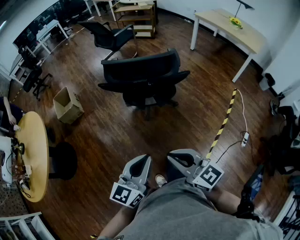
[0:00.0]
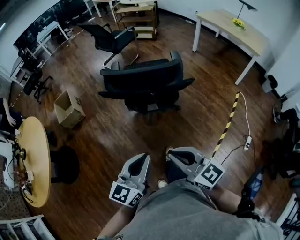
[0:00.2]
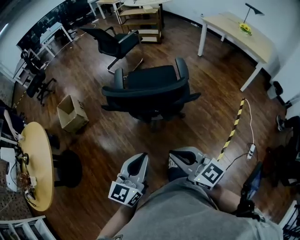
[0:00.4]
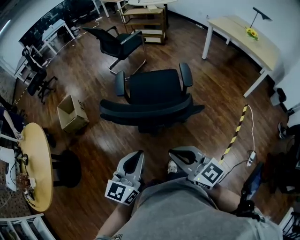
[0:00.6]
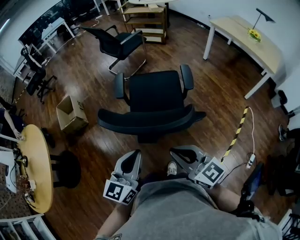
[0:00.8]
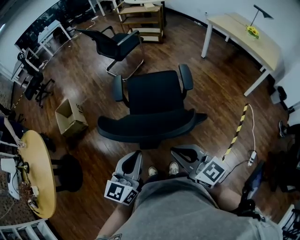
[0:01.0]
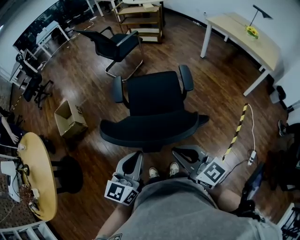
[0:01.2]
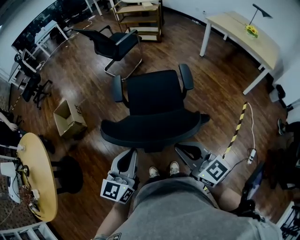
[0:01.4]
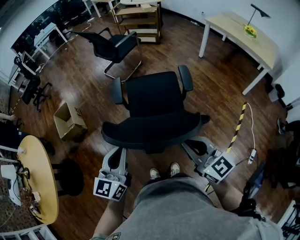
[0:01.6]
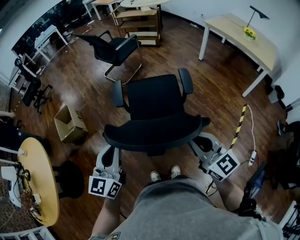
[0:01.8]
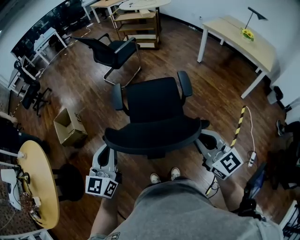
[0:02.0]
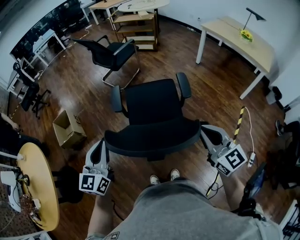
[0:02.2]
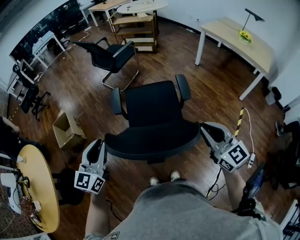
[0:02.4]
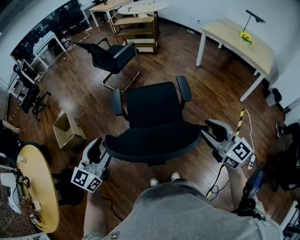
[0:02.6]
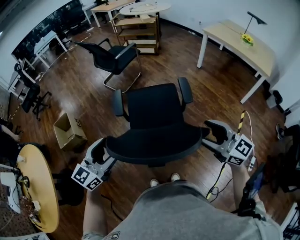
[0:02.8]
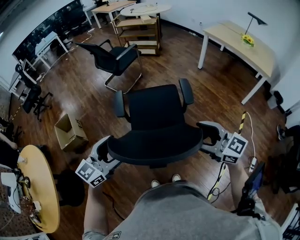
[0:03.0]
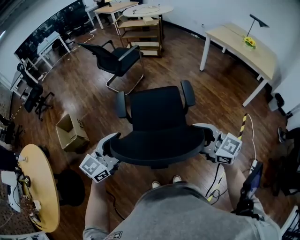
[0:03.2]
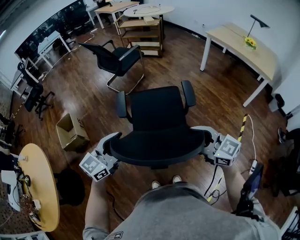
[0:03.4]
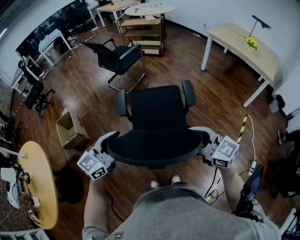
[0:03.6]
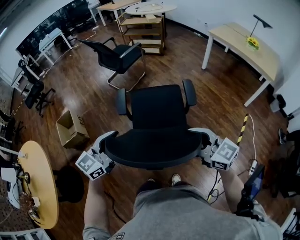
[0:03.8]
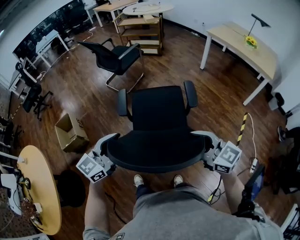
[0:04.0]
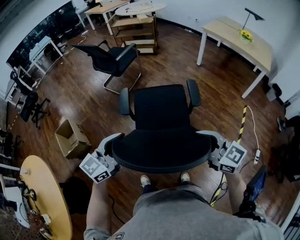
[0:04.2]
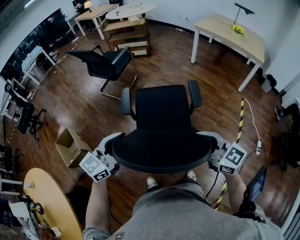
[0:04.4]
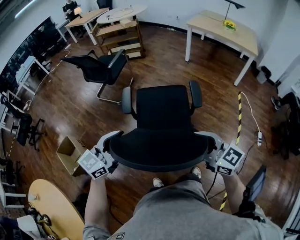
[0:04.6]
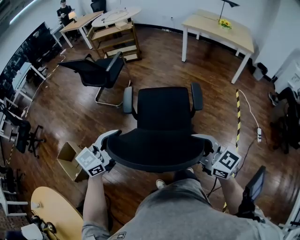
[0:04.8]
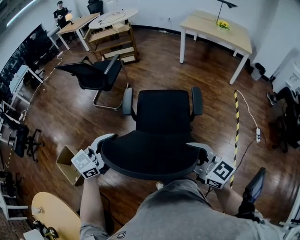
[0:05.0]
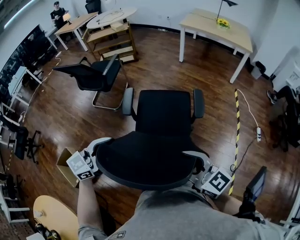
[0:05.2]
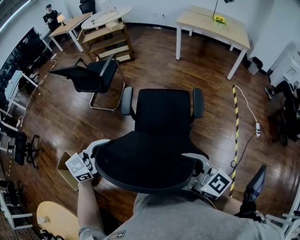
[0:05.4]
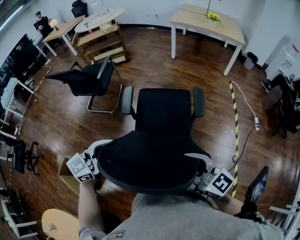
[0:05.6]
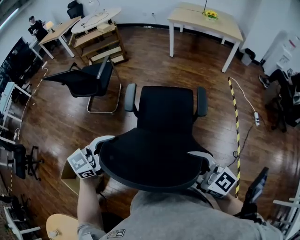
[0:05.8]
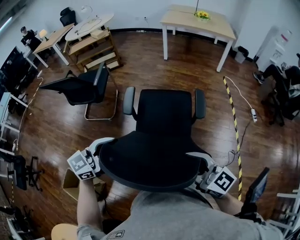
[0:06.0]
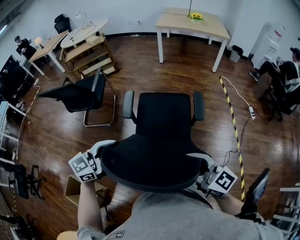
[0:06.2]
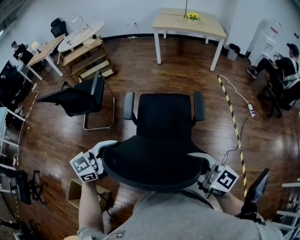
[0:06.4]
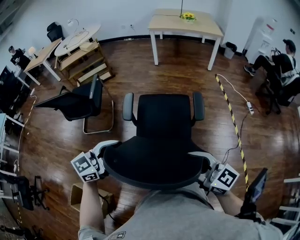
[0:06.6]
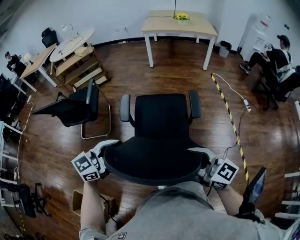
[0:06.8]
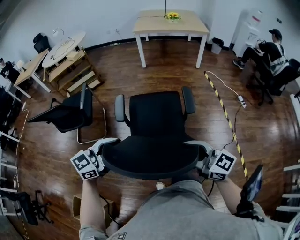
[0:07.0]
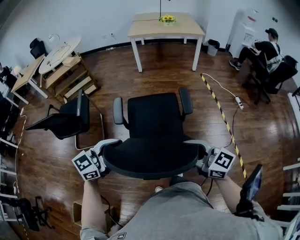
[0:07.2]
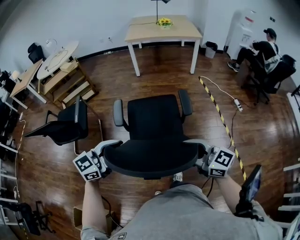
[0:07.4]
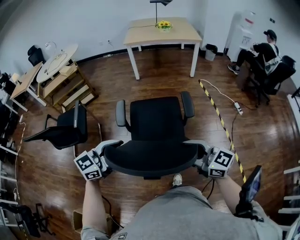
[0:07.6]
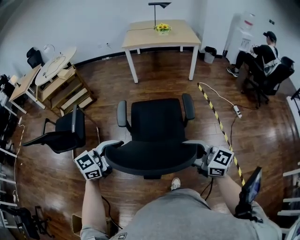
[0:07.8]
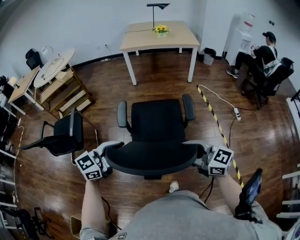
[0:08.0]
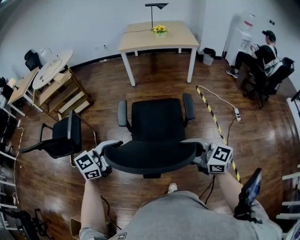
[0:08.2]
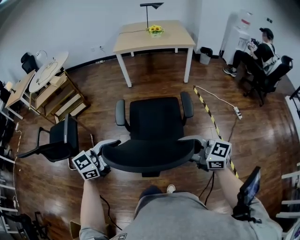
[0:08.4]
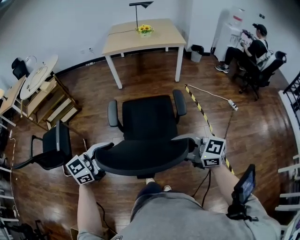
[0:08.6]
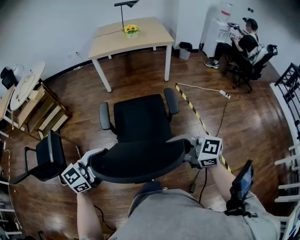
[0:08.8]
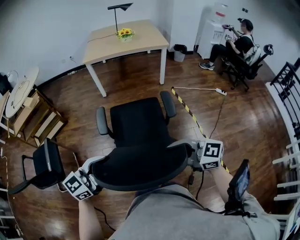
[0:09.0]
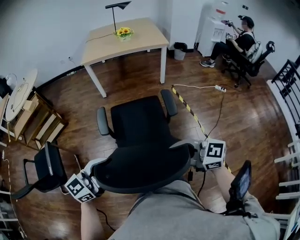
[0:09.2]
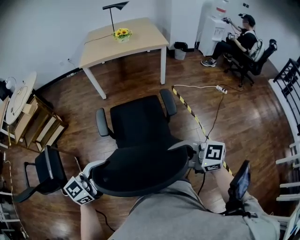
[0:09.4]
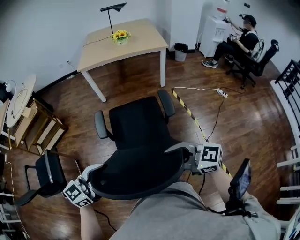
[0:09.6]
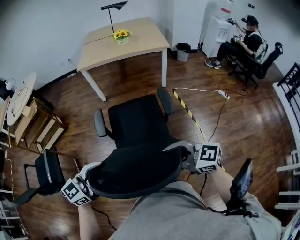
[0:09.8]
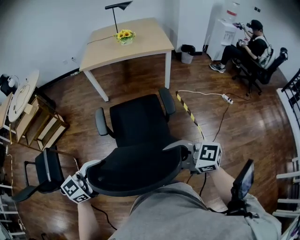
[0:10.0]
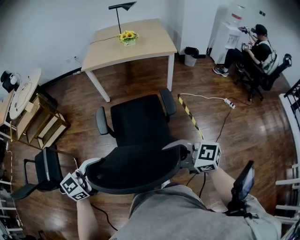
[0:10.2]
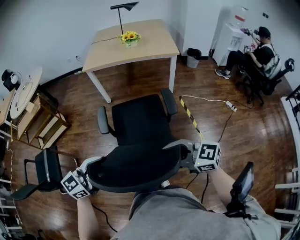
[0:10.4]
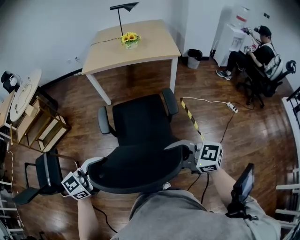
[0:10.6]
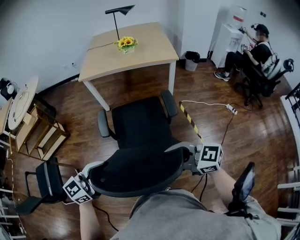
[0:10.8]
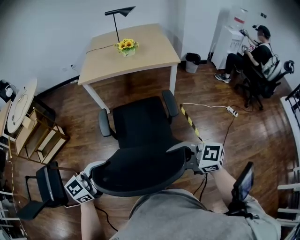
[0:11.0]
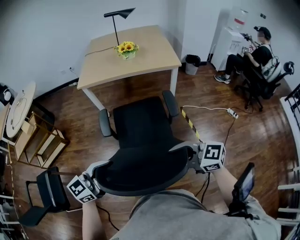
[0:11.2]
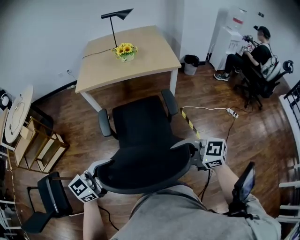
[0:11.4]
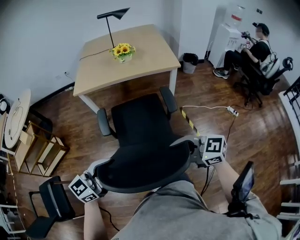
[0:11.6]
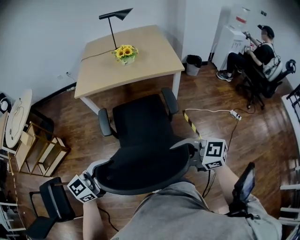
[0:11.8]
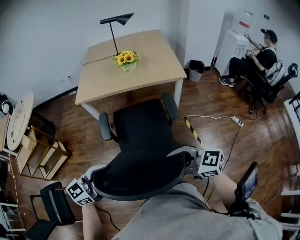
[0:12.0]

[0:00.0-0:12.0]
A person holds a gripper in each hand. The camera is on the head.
0:00.0 to 0:01.6: The grippers both shift forward by some 30 cm.
0:01.6 to 0:03.0: The left gripper heads forward, covering approximately 5 cm, turns by roughly 30 degrees, and opens. The right gripper goes some 10 cm forward and to the right, and opens its fingers.
0:03.0 to 0:04.4: The left gripper is displaced to the left and forward by some 10 cm. Meanwhile the right gripper moves to the left, approximately 15 cm.
0:04.4 to 0:06.0: The left gripper changes place by about 20 cm, and rotates about 30 degrees, while the right gripper moves about 20 cm, and rotates roughly 30 degrees.
0:06.0 to 0:07.6: The two grippers go some 15 cm forward.
0:07.6 to 0:09.0: The left gripper changes place by roughly 20 cm, while the right gripper moves about 20 cm.
0:09.0 to 0:10.4: The right gripper shifts by roughly 20 cm, while the left gripper moves approximately 20 cm.
0:10.4 to 0:12.0: The left gripper ends up about 30 cm from where it was, while the right gripper changes place by roughly 25 cm.

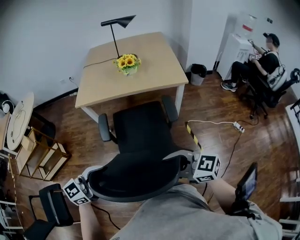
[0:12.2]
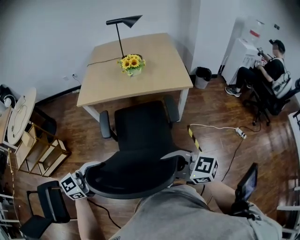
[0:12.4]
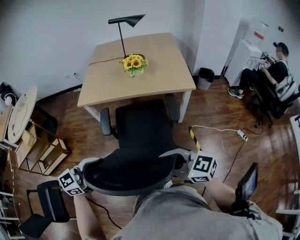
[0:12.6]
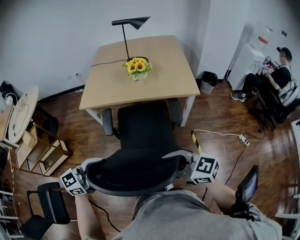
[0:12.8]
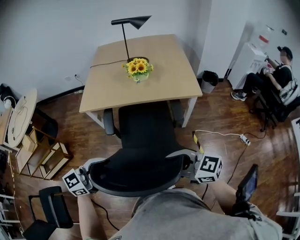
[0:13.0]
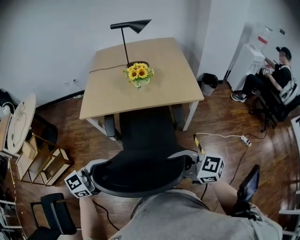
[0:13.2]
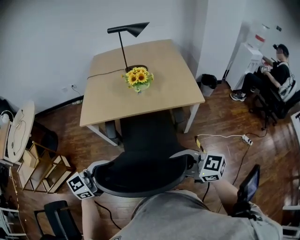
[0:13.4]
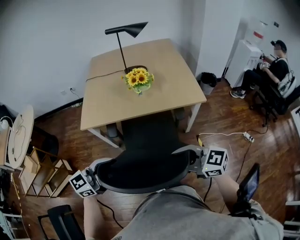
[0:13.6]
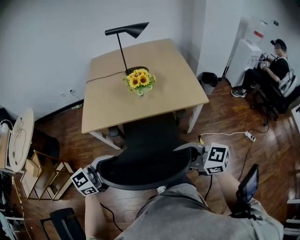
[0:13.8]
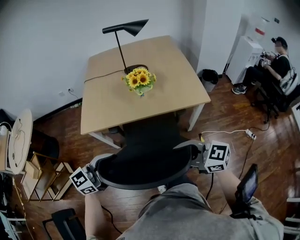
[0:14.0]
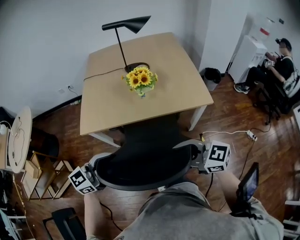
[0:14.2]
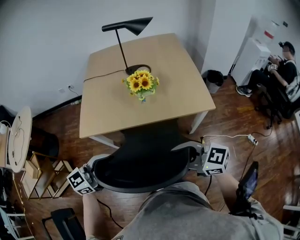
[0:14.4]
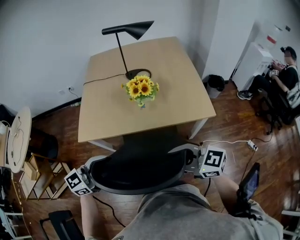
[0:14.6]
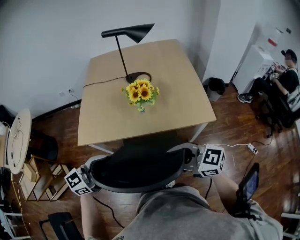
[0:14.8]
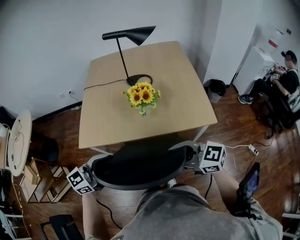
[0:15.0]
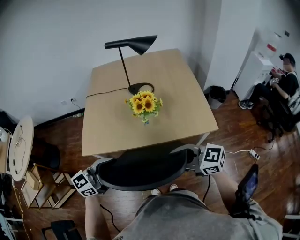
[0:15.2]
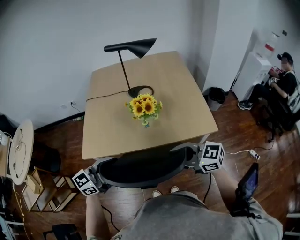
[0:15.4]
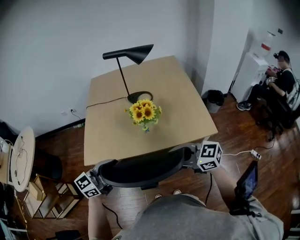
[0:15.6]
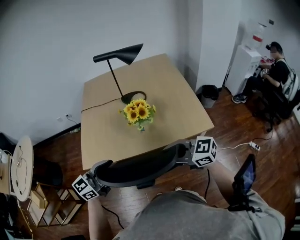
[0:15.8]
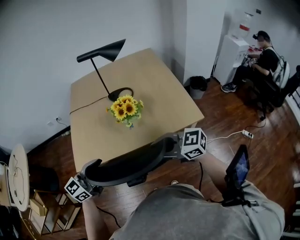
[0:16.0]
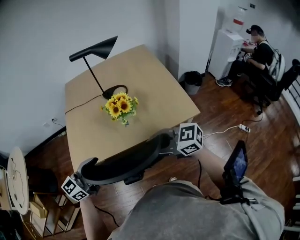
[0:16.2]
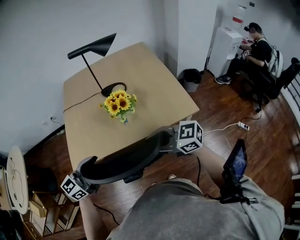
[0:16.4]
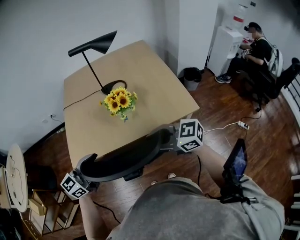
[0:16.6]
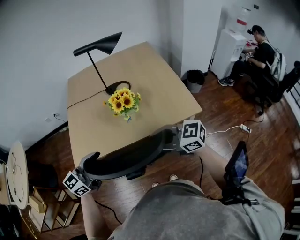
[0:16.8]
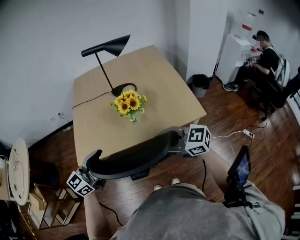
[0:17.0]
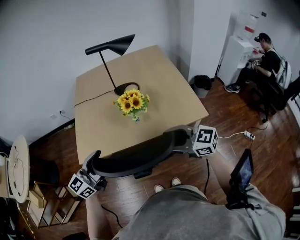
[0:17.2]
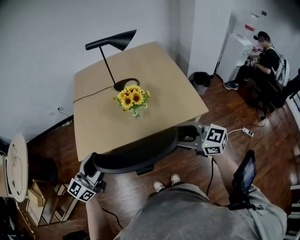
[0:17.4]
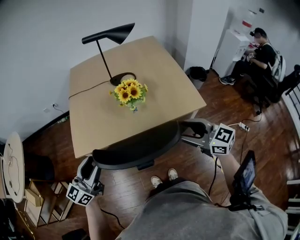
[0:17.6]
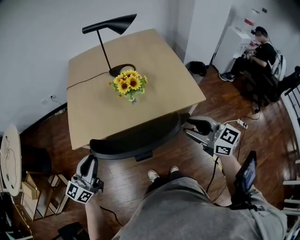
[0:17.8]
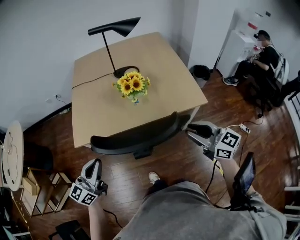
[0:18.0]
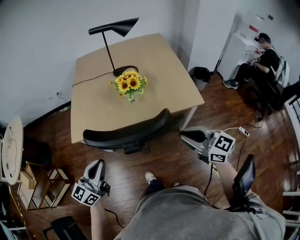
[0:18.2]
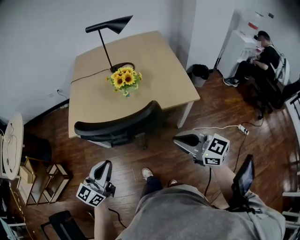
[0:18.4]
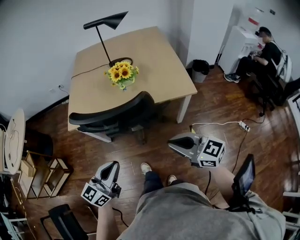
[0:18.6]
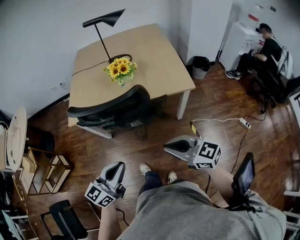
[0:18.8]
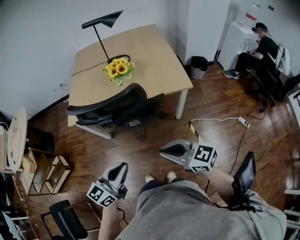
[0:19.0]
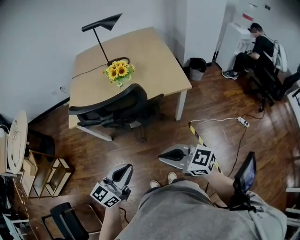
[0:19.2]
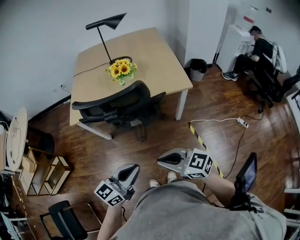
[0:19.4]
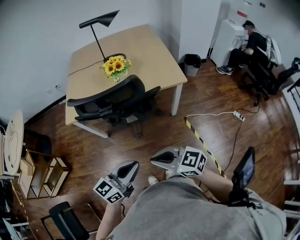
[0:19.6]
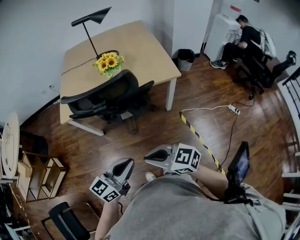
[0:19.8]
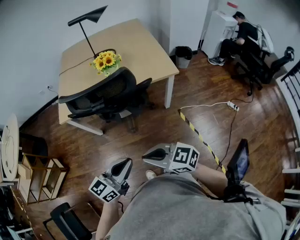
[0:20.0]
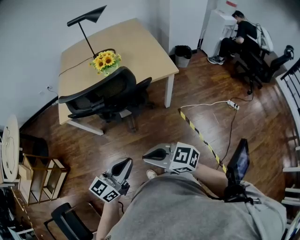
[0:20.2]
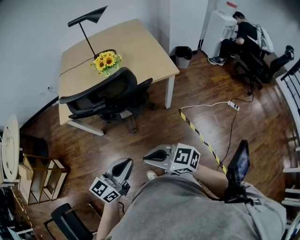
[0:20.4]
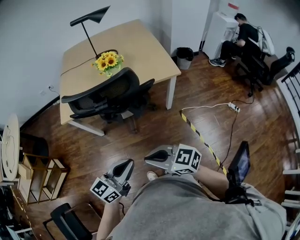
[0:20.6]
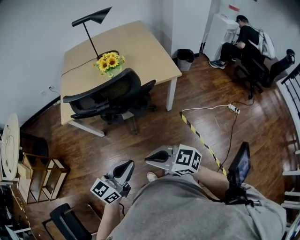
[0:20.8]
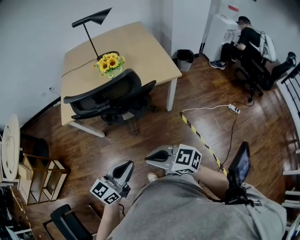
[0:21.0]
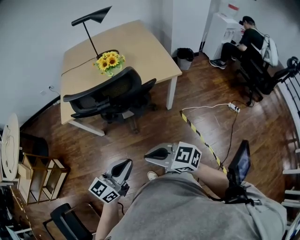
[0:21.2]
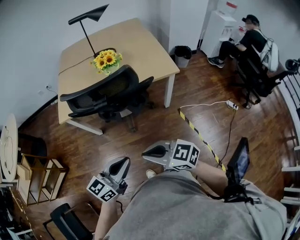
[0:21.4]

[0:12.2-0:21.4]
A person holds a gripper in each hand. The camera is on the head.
0:12.2 to 0:13.8: The left gripper ends up about 25 cm from where it was; the right gripper shifts by approximately 25 cm.
0:13.8 to 0:15.2: The right gripper moves about 20 cm; the left gripper moves some 15 cm.
0:15.2 to 0:16.8: The grippers stay close to where they were, moving slightly.
0:16.8 to 0:18.4: The left gripper changes place by roughly 15 cm, changes its angle by about 20 degrees, and closes. The right gripper shifts by some 15 cm, and closes up.
0:18.4 to 0:19.8: The left gripper goes approximately 20 cm backward and to the right. The right gripper goes some 20 cm backward and to the left.
0:19.8 to 0:21.4: The grippers make only small movements.

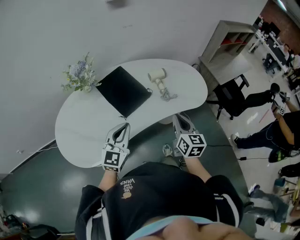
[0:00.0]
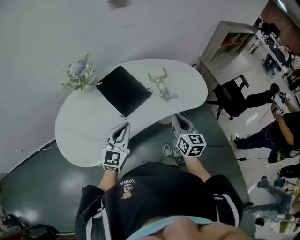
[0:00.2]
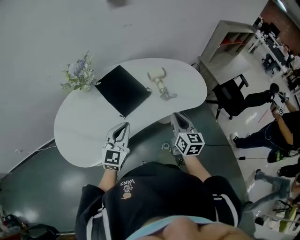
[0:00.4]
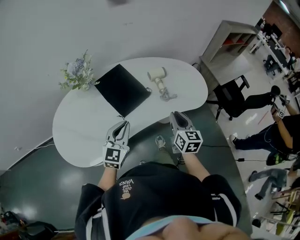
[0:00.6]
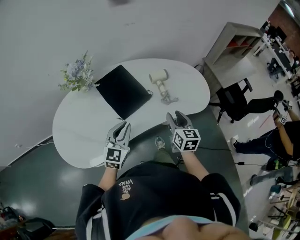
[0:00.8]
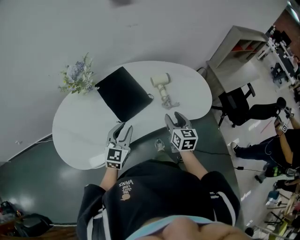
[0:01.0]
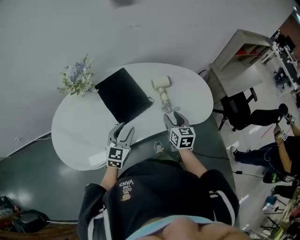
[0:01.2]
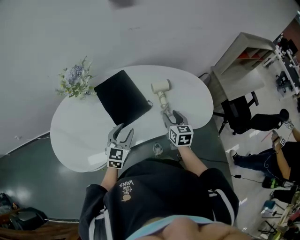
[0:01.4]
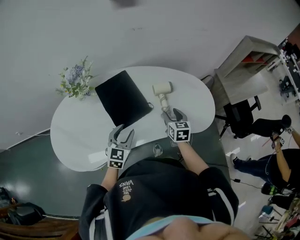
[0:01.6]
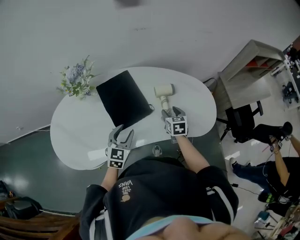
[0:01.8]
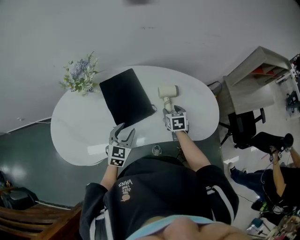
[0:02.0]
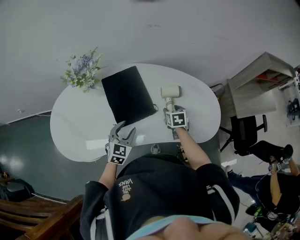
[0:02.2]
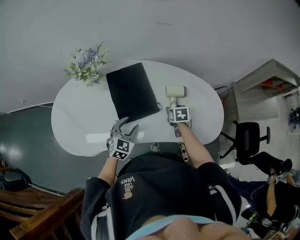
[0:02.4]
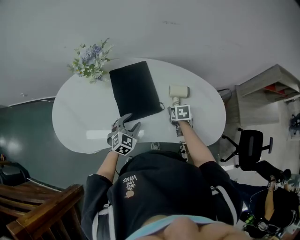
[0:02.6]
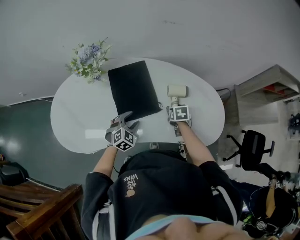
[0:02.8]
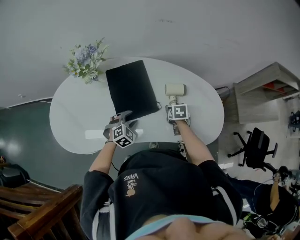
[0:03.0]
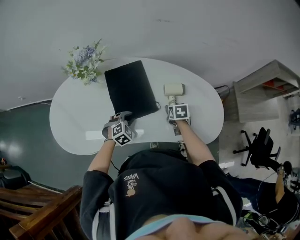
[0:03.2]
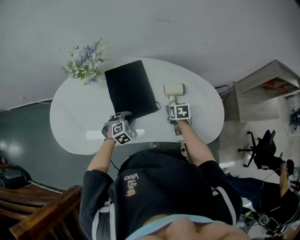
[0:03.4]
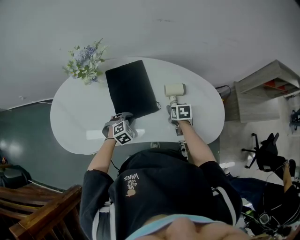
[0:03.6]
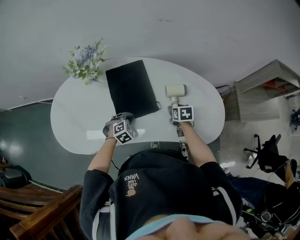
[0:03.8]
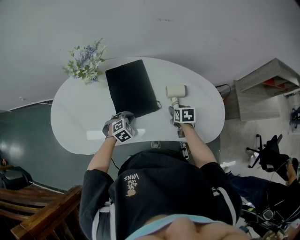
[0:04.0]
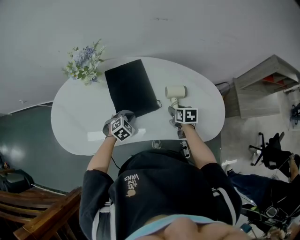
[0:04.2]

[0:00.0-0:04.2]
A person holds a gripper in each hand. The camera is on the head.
0:00.0 to 0:01.4: Both grippers move forward and downward, roughly 20 cm. The right gripper opens up, while the left gripper opens.
0:01.4 to 0:02.8: The right gripper is displaced forward and downward by some 15 cm, and angles its fingers downward, by roughly 30 degrees, while the left gripper moves downward and forward, approximately 15 cm, and rotates roughly 30 degrees.
0:02.8 to 0:04.2: The left gripper closes up.
